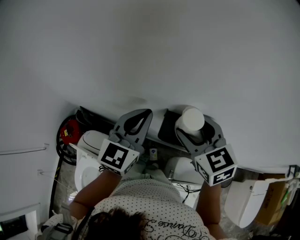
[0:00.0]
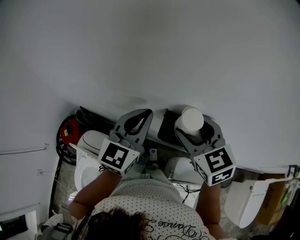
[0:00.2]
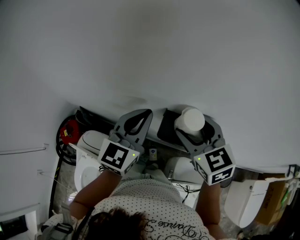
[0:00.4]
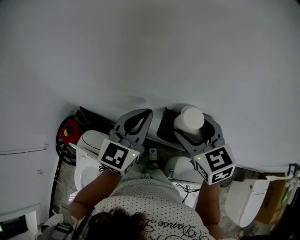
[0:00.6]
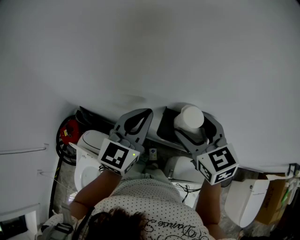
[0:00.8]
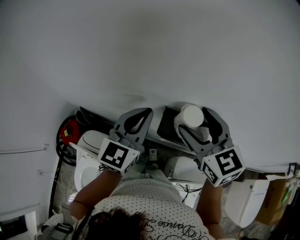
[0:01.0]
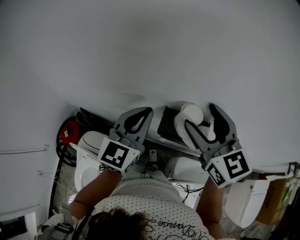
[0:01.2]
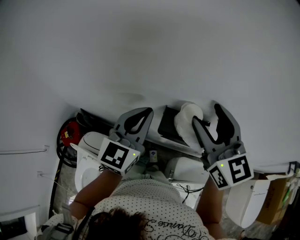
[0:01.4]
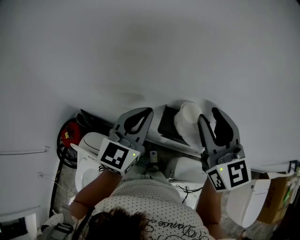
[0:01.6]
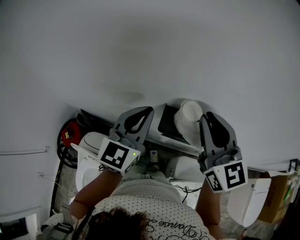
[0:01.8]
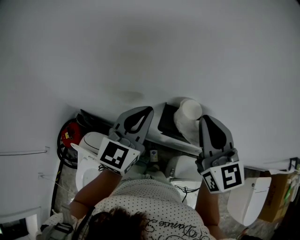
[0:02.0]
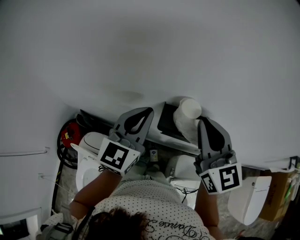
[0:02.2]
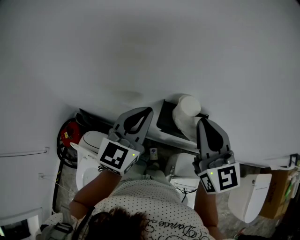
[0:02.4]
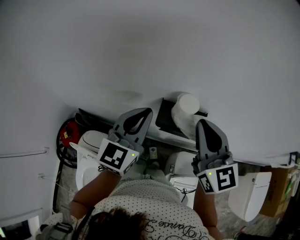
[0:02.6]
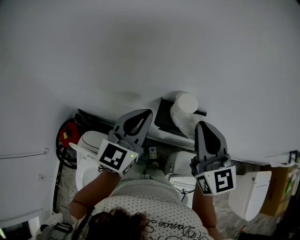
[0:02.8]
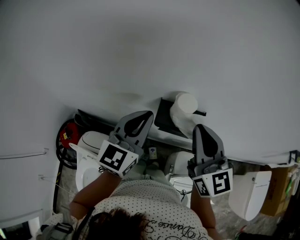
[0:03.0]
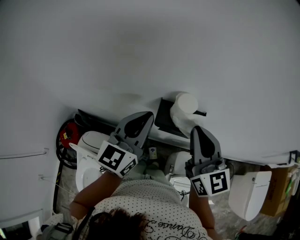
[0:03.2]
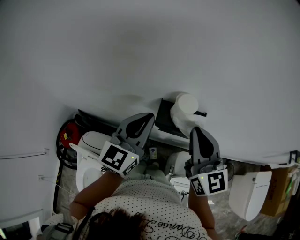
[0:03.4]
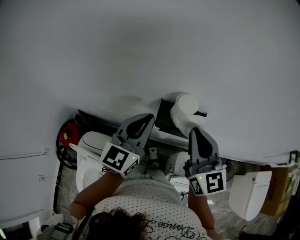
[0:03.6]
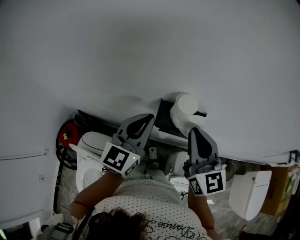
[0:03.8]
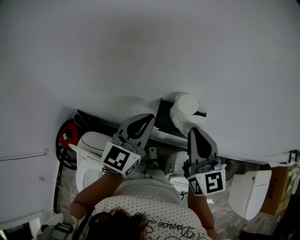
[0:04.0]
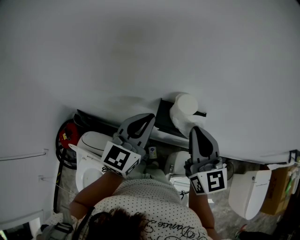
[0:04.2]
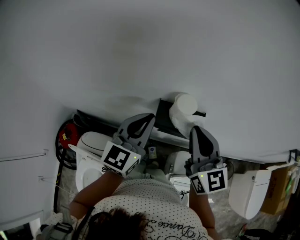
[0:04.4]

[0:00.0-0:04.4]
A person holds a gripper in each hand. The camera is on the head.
0:00.0 to 0:01.4: The right gripper travels upward by roughly 10 cm, and turns by about 20 degrees.
0:01.4 to 0:03.0: The right gripper shifts about 5 cm backward, and closes.
0:03.0 to 0:04.4: The grippers move only a little.

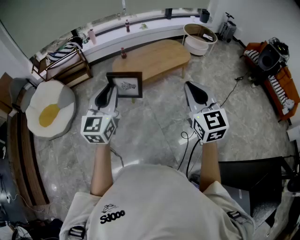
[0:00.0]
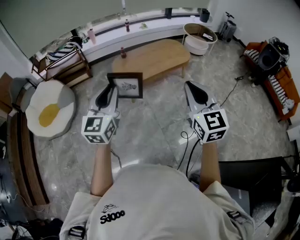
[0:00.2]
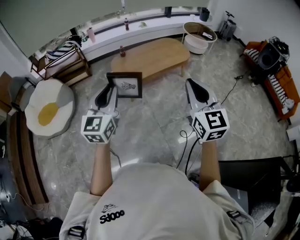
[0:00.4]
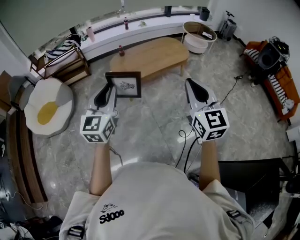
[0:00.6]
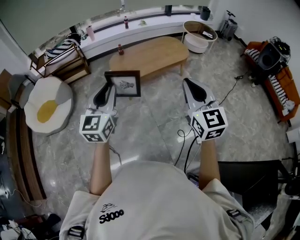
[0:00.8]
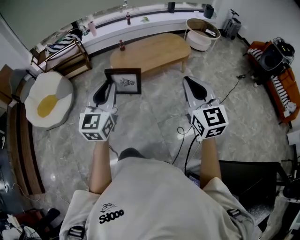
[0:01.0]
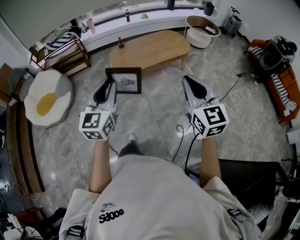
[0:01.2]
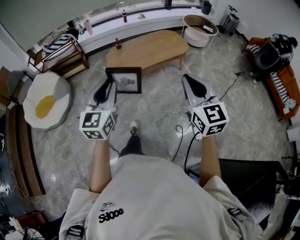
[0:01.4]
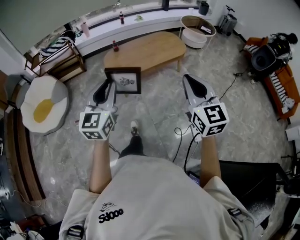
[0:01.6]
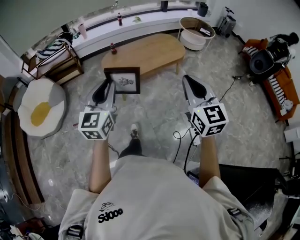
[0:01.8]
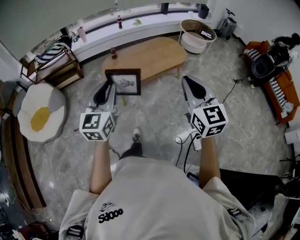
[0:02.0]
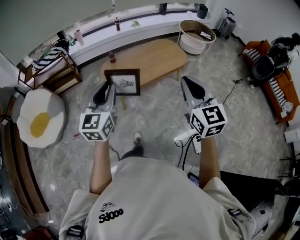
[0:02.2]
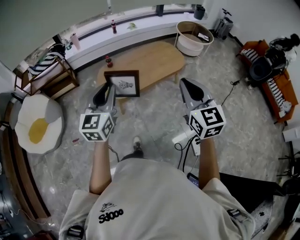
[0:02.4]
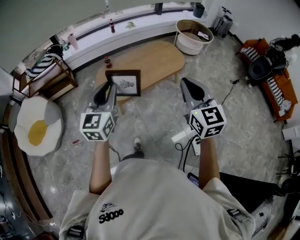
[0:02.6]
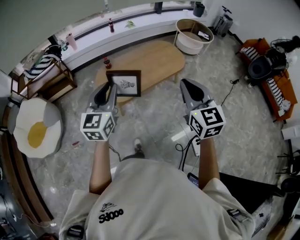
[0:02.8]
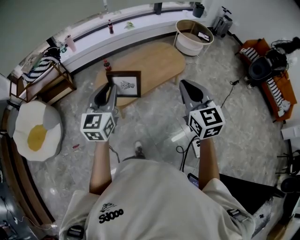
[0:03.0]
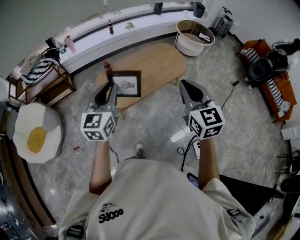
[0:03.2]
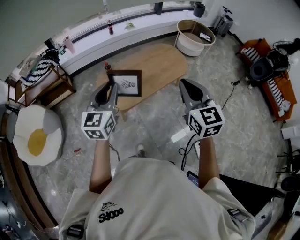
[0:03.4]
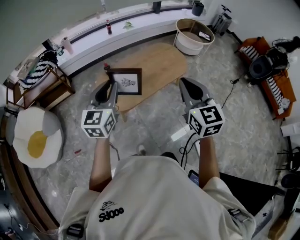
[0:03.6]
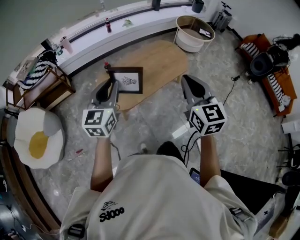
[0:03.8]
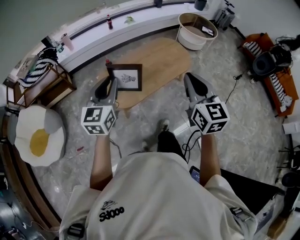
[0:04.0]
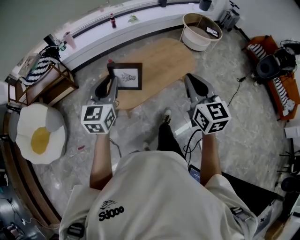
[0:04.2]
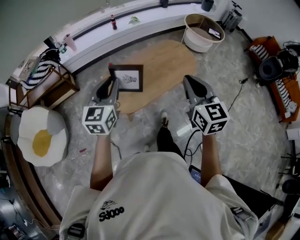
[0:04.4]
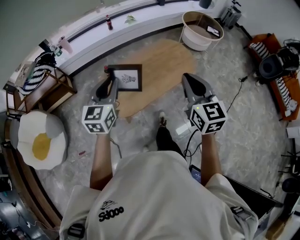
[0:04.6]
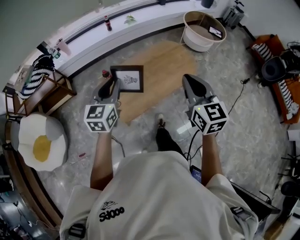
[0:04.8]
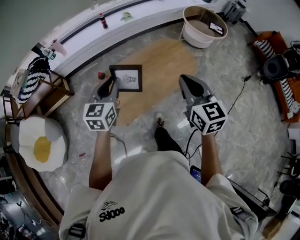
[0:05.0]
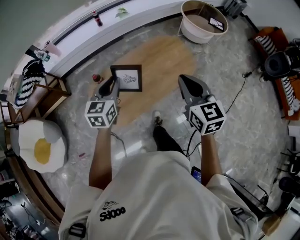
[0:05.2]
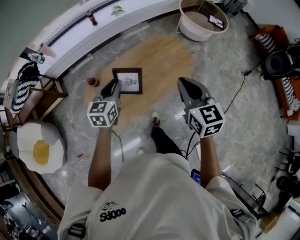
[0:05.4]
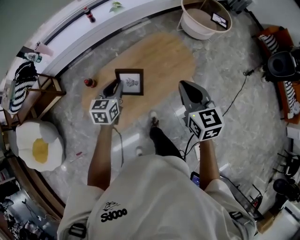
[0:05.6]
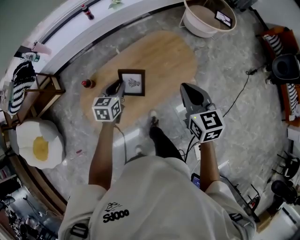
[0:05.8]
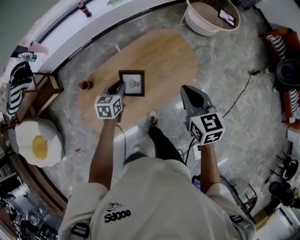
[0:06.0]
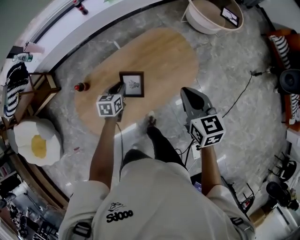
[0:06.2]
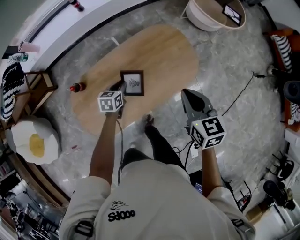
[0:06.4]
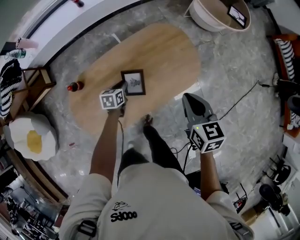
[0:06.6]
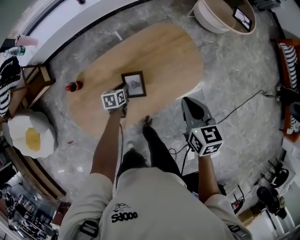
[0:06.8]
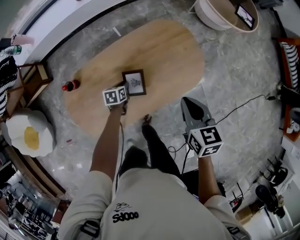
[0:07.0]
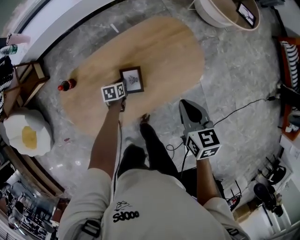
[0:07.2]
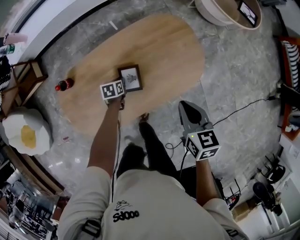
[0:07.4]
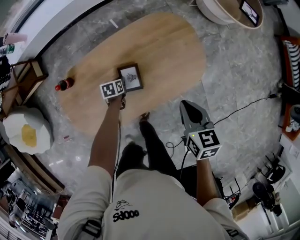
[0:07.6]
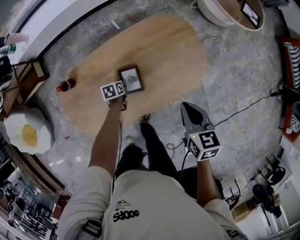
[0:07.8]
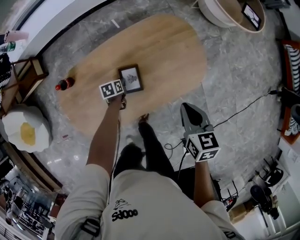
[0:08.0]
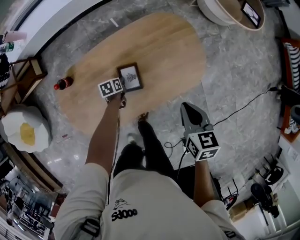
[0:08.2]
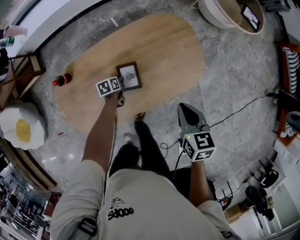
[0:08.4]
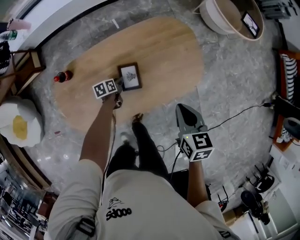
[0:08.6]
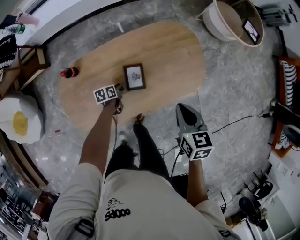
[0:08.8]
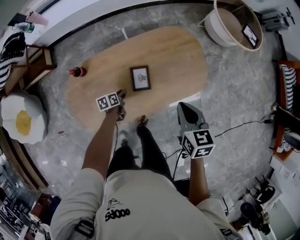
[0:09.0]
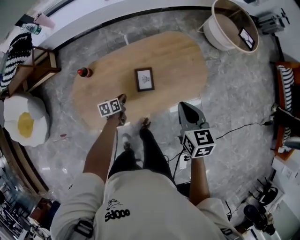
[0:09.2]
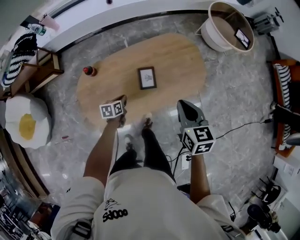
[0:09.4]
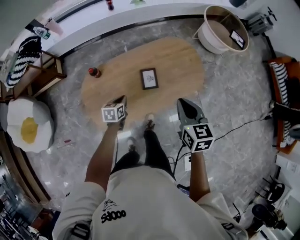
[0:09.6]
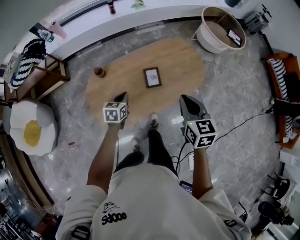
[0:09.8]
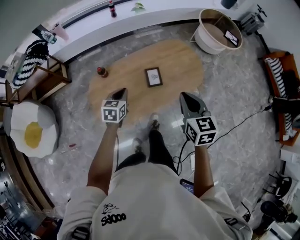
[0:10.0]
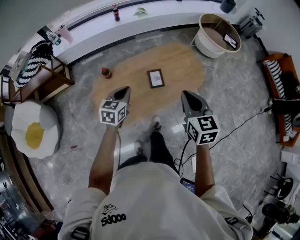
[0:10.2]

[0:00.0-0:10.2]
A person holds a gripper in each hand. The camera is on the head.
0:00.0 to 0:01.4: Both grippers move to the right, roughly 5 cm.
0:01.4 to 0:03.0: Both grippers travel together forward, approximately 35 cm.
0:03.0 to 0:04.4: Both grippers travel together forward, approximately 15 cm.
0:04.4 to 0:05.8: The two grippers go roughly 40 cm forward, downward and to the right. The left gripper swivels roughly 30 degrees.
0:05.8 to 0:07.2: The right gripper heads downward and forward, covering some 20 cm. The left gripper moves downward, approximately 35 cm, and rotates roughly 40 degrees.
0:07.2 to 0:08.8: The left gripper heads backward, covering some 5 cm, and turns by roughly 20 degrees.
0:08.8 to 0:10.2: The right gripper shifts some 30 cm upward, backward and to the left, and swivels about 20 degrees, while the left gripper goes about 40 cm upward and backward, twists approximately 50 degrees clockwise, seen from behind, and closes up.

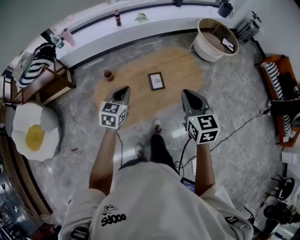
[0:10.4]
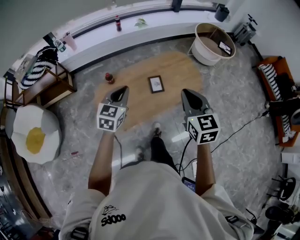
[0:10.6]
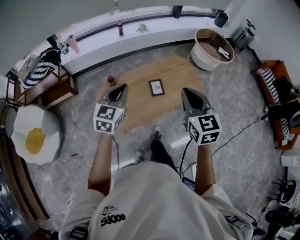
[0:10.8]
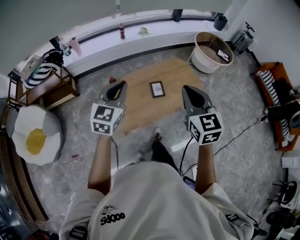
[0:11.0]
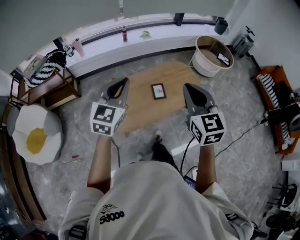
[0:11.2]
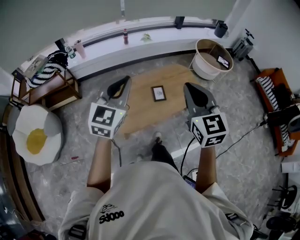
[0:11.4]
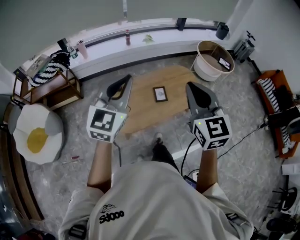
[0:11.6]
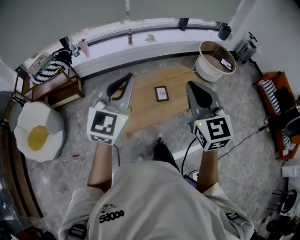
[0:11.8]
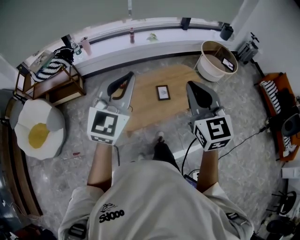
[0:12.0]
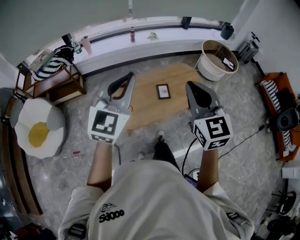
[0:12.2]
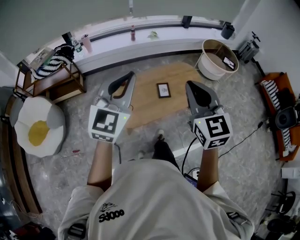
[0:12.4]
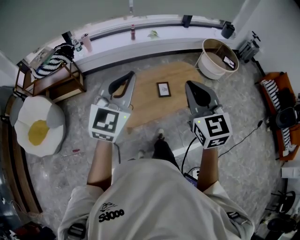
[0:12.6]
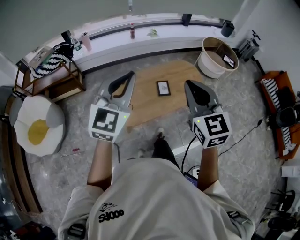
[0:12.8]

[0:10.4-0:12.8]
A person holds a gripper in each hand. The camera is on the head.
0:10.4 to 0:11.6: Both grippers move upward and backward, roughly 25 cm. The right gripper turns by about 20 degrees. The left gripper swivels approximately 30 degrees.
0:11.6 to 0:12.8: There are only small adjustments of the grippers.

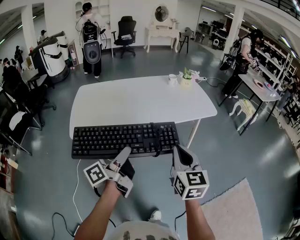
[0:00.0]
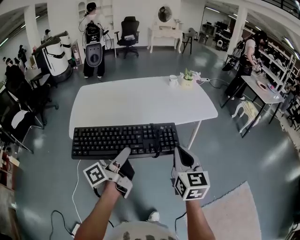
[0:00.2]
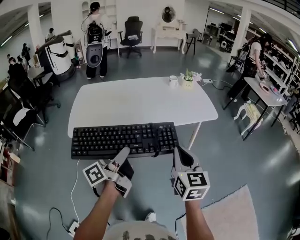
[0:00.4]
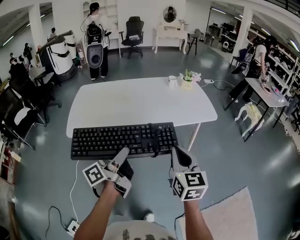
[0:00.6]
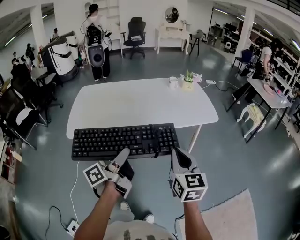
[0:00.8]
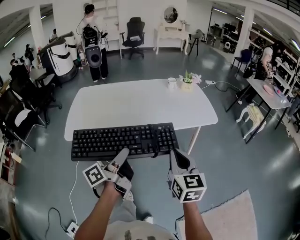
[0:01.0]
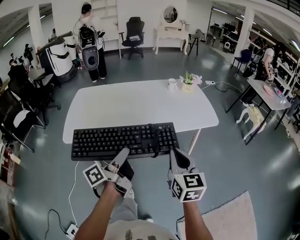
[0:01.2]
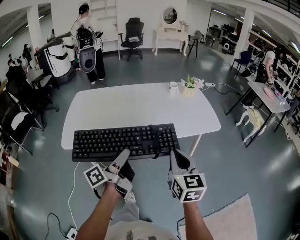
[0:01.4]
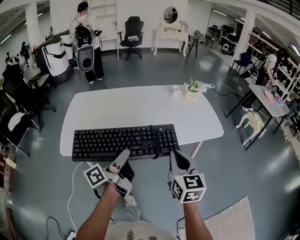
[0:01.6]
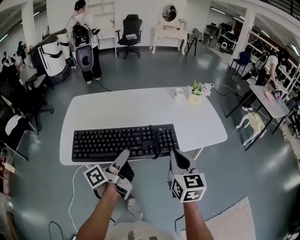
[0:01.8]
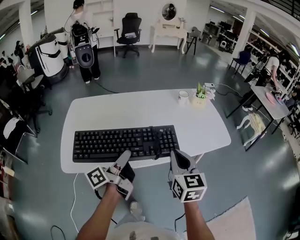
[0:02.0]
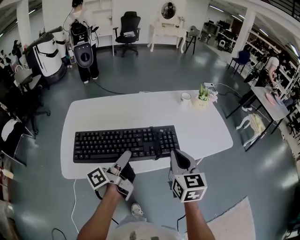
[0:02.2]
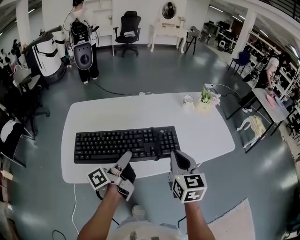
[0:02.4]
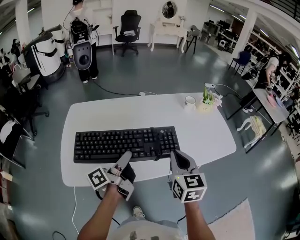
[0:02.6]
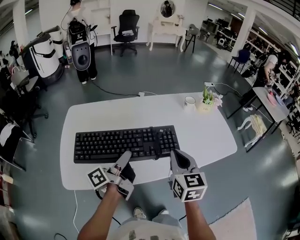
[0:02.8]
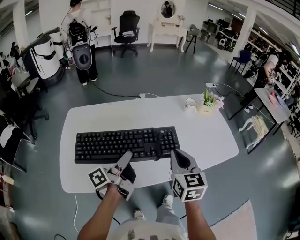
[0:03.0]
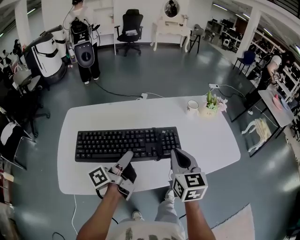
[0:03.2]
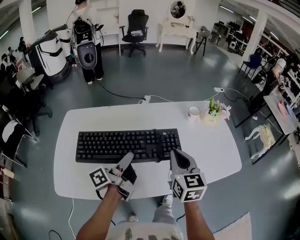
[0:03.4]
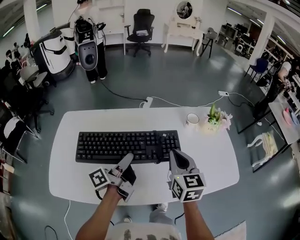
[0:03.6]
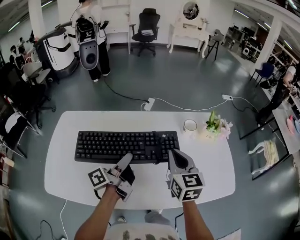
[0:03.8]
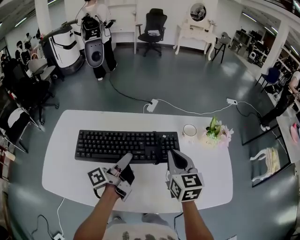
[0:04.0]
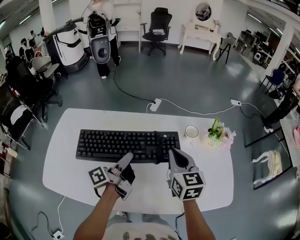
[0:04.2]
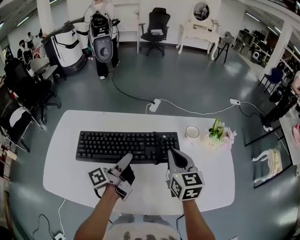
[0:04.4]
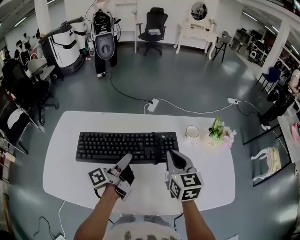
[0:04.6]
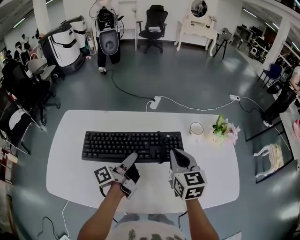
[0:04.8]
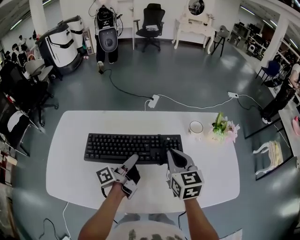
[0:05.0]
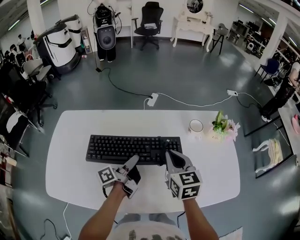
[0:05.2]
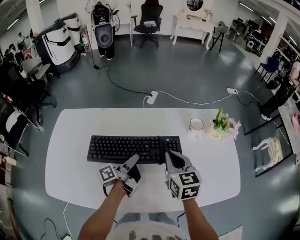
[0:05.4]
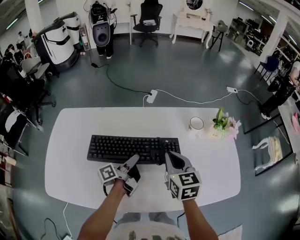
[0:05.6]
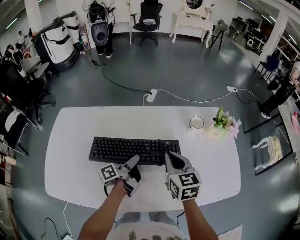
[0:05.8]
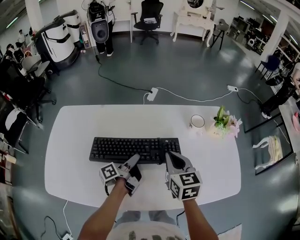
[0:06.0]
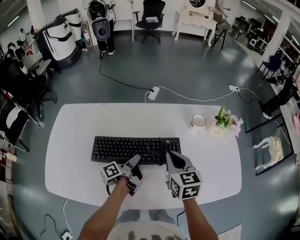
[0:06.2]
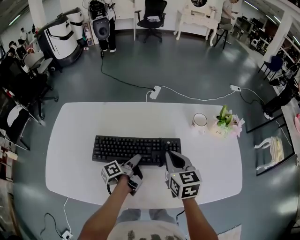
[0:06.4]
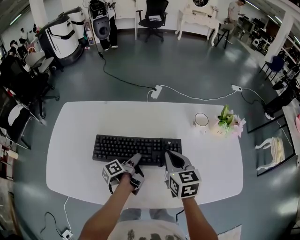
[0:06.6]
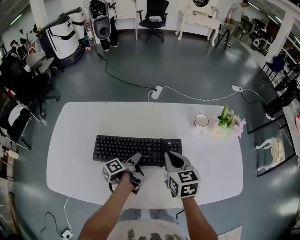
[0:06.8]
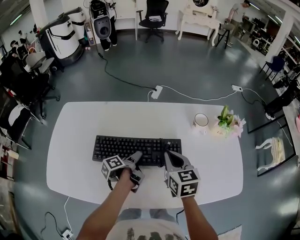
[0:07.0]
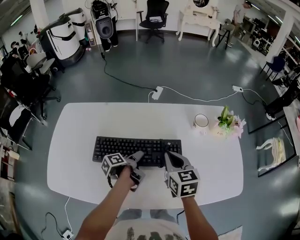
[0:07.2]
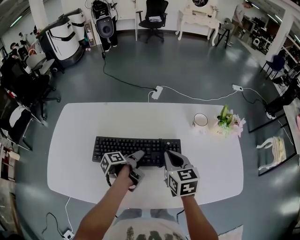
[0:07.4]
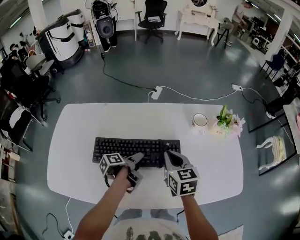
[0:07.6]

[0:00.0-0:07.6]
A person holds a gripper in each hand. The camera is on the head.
0:00.0 to 0:01.6: The right gripper shifts by approximately 15 cm.
0:01.6 to 0:03.0: The right gripper changes place by about 20 cm.
0:03.0 to 0:04.6: The right gripper shifts by some 25 cm.
0:04.6 to 0:06.0: The right gripper travels downward by approximately 5 cm.
